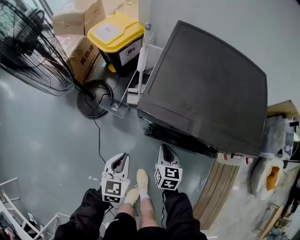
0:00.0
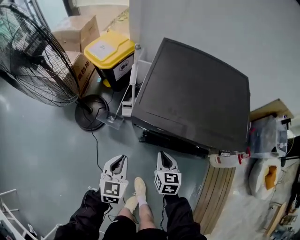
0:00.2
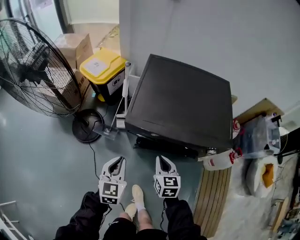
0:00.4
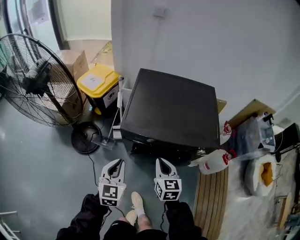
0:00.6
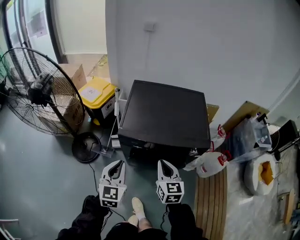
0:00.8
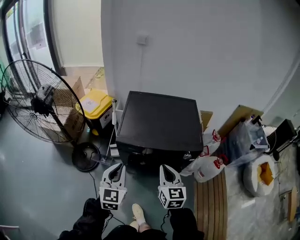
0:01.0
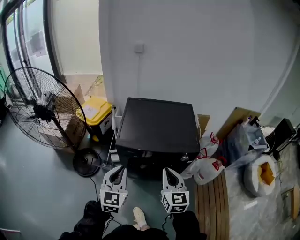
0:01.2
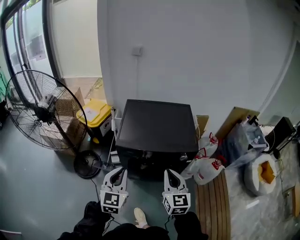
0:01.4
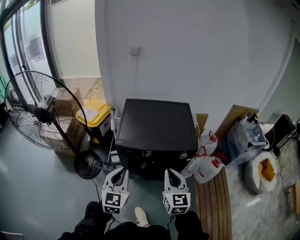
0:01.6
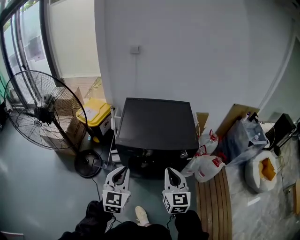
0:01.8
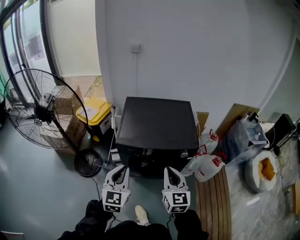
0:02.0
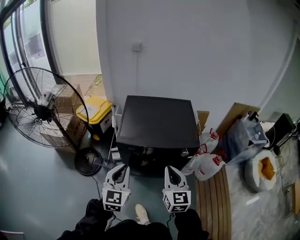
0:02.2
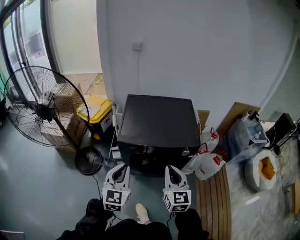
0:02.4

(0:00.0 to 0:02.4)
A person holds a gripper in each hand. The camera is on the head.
0:00.0 - 0:01.2: The right gripper moves upward and backward, approximately 50 cm, and turns by some 30 degrees; the left gripper is displaced upward by some 40 cm, and rotates some 30 degrees.
0:01.2 - 0:02.4: The grippers make only small movements.

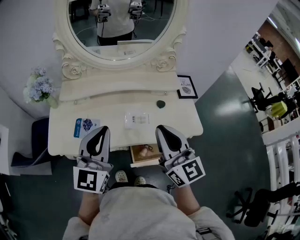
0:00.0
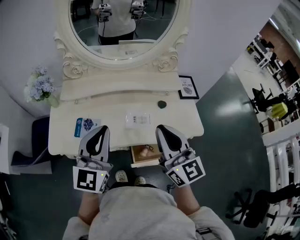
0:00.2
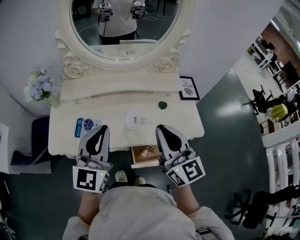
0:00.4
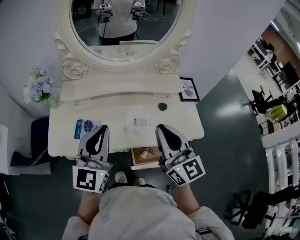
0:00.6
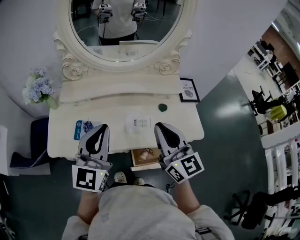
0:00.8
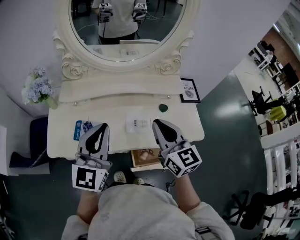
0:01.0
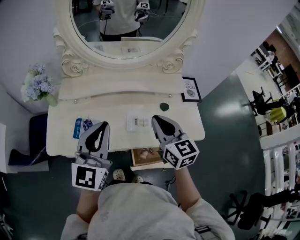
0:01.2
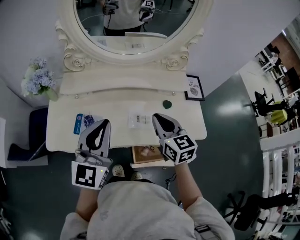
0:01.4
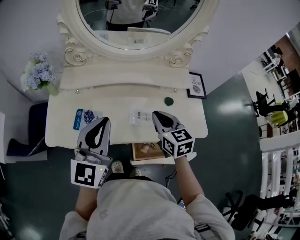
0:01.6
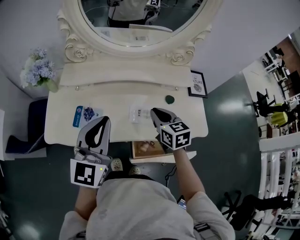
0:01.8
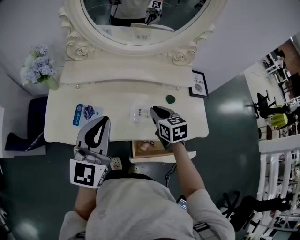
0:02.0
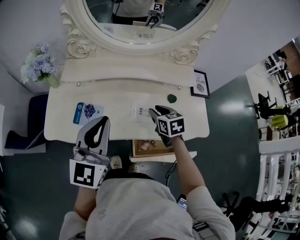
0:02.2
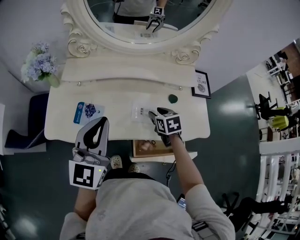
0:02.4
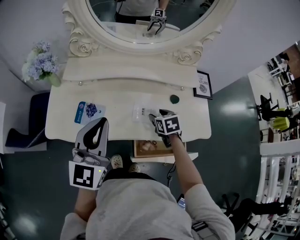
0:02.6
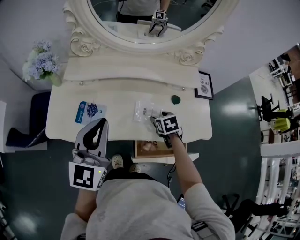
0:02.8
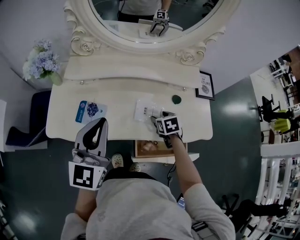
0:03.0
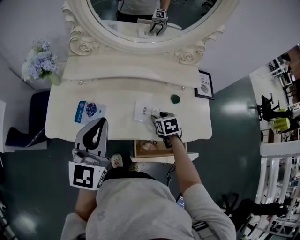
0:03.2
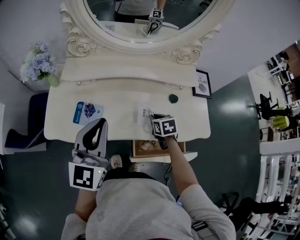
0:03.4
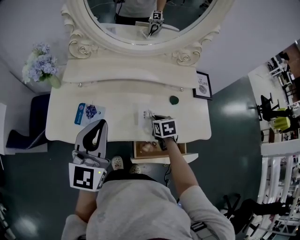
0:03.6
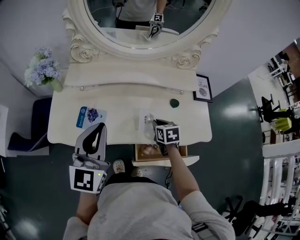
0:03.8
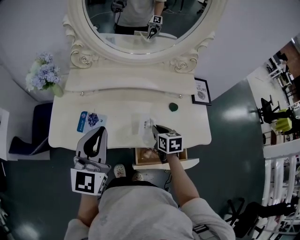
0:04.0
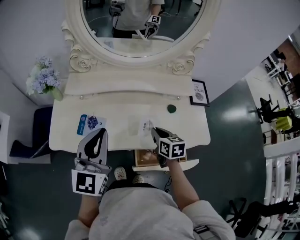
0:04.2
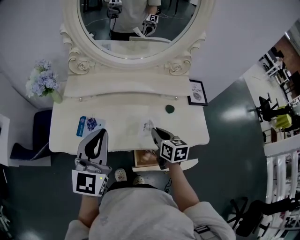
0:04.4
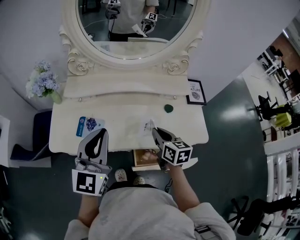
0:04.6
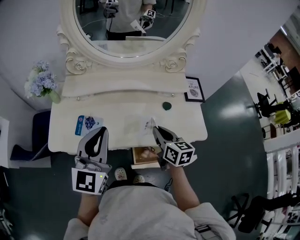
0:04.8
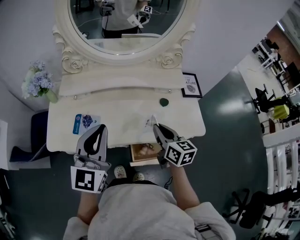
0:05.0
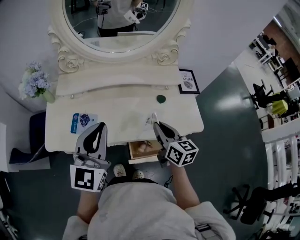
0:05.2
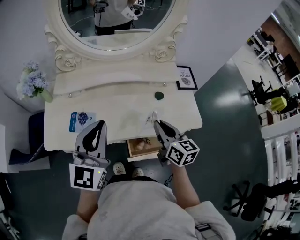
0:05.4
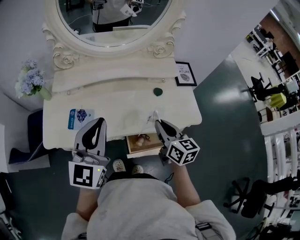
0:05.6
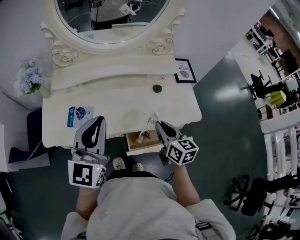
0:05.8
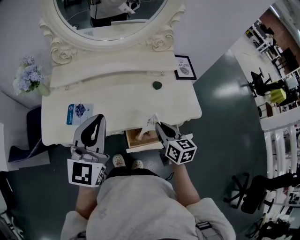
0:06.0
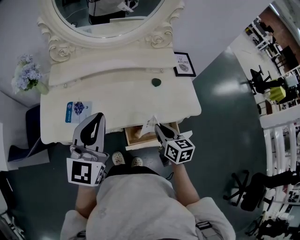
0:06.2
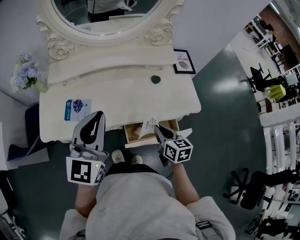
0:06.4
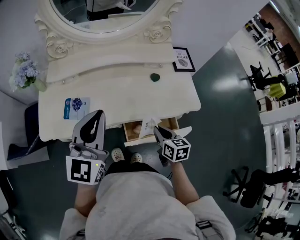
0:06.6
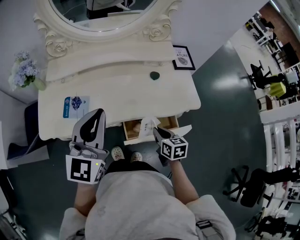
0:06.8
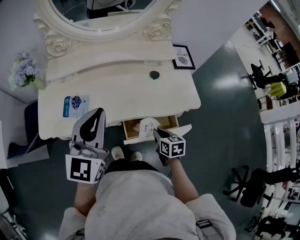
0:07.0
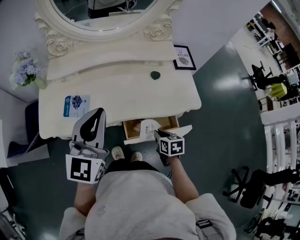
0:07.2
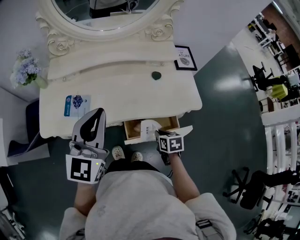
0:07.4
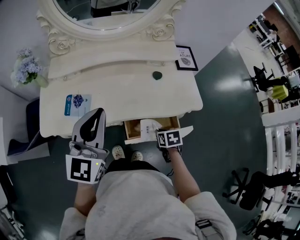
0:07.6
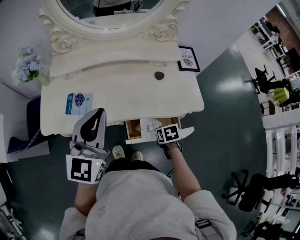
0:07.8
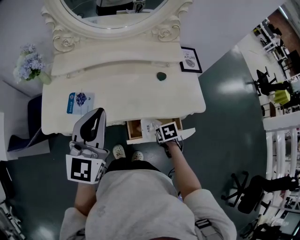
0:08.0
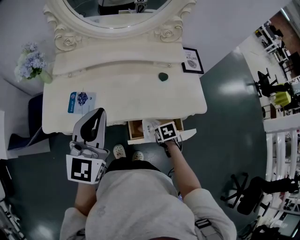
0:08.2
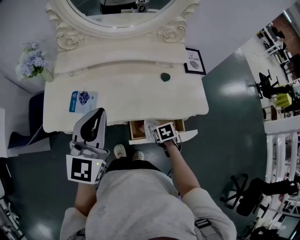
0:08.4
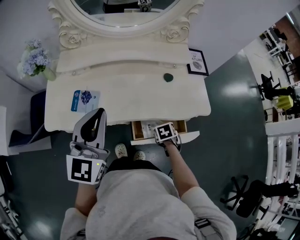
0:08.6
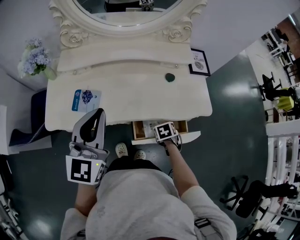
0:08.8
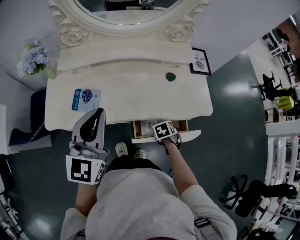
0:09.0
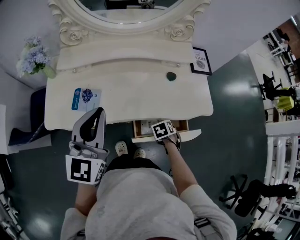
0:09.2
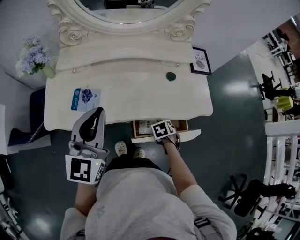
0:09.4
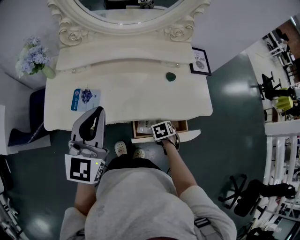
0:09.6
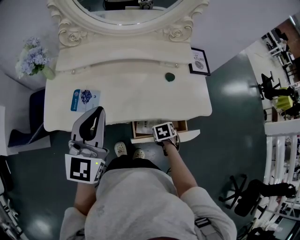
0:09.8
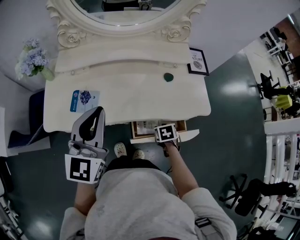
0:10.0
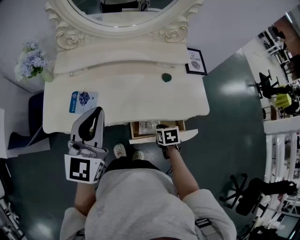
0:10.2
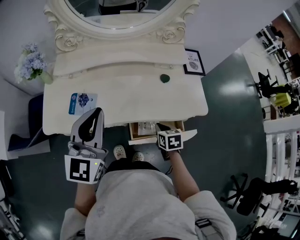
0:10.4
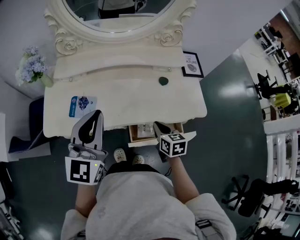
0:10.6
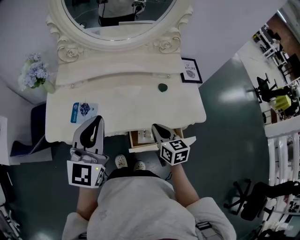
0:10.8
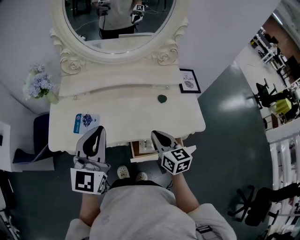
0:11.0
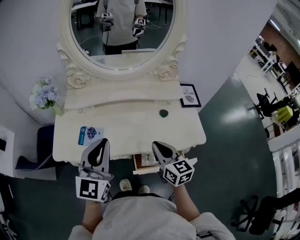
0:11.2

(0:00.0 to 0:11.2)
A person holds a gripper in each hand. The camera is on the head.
0:00.0 - 0:01.6: The right gripper moves downward and forward, approximately 20 cm, and angles its fingers downward, by roughly 30 degrees. The left gripper moves approximately 5 cm.
0:01.6 - 0:03.2: The right gripper moves downward, about 20 cm, angles its fingers downward, by some 30 degrees, and opens up.
0:03.2 - 0:04.8: The right gripper shifts about 15 cm upward and backward, tips its fingers upward by about 30 degrees, and closes.
0:04.8 - 0:06.4: The right gripper moves backward, downward and to the right, some 15 cm.
0:06.4 - 0:08.0: The right gripper is displaced downward by some 10 cm, and tips its fingers downward by about 40 degrees.
0:08.0 - 0:09.6: The right gripper shifts by about 5 cm, and opens its fingers.
0:09.6 - 0:11.2: The right gripper goes approximately 25 cm upward, tips its fingers upward by about 60 degrees, and closes its fingers.

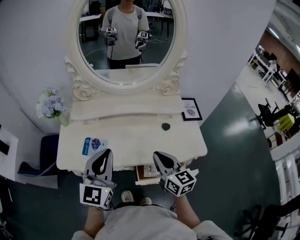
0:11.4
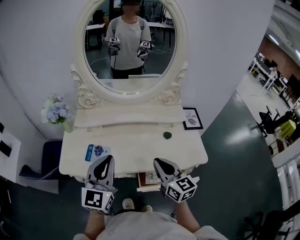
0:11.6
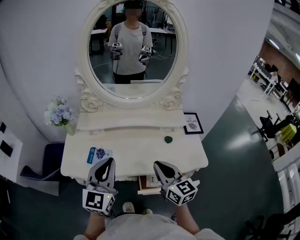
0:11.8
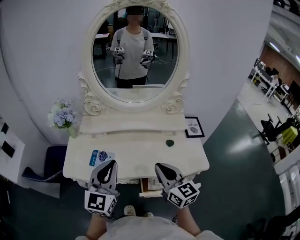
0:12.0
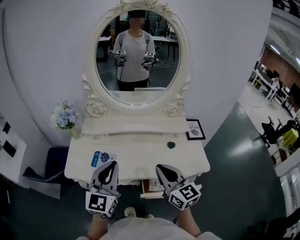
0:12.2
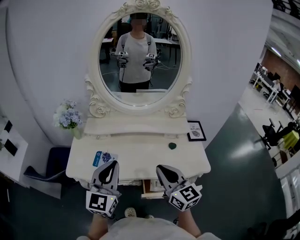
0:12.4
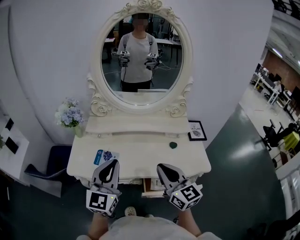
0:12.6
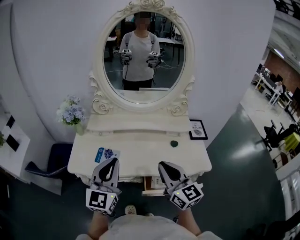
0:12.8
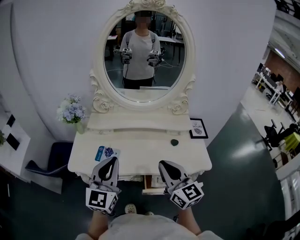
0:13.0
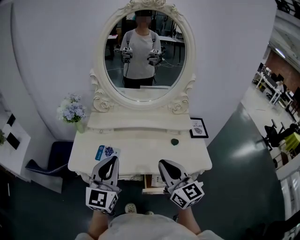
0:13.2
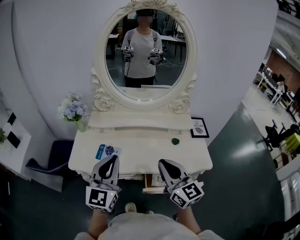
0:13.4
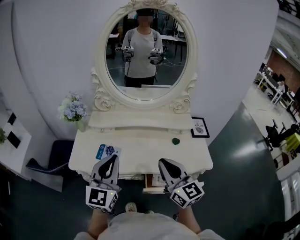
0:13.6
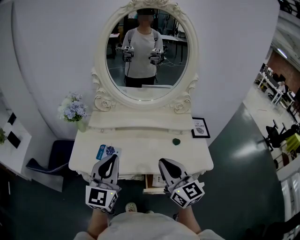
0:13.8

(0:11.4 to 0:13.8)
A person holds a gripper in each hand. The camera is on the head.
0:11.4 - 0:12.6: The right gripper moves upward, about 10 cm. Meanwhile the left gripper changes place by approximately 5 cm.
0:12.6 - 0:13.8: The grippers move only a little.

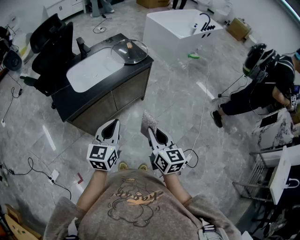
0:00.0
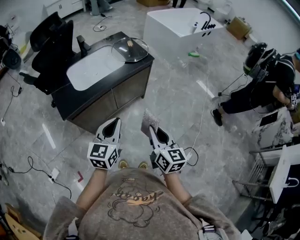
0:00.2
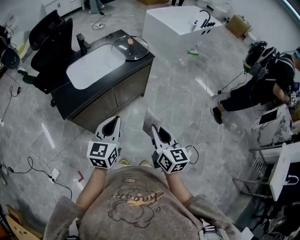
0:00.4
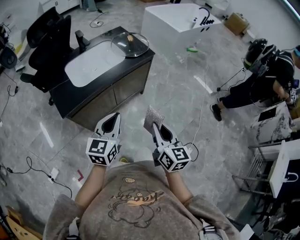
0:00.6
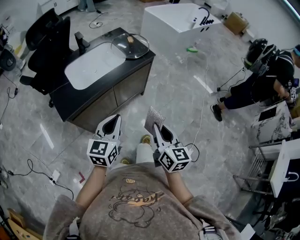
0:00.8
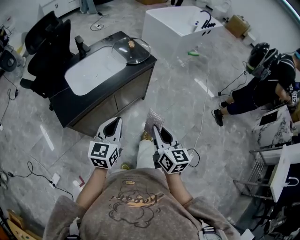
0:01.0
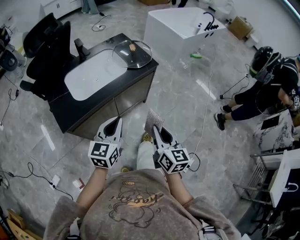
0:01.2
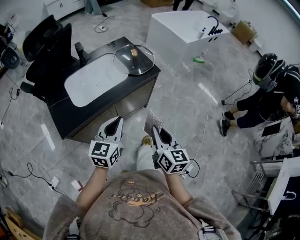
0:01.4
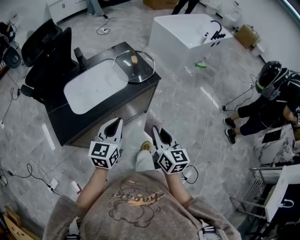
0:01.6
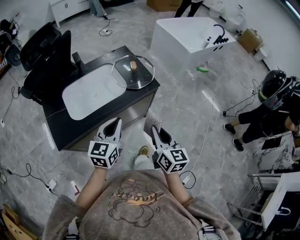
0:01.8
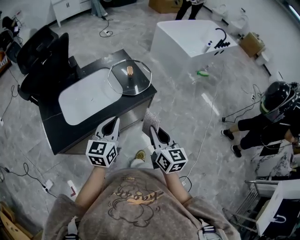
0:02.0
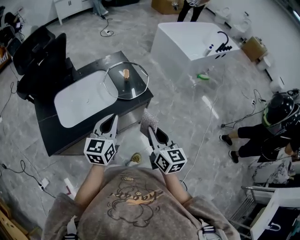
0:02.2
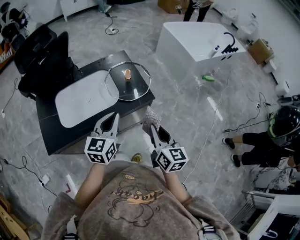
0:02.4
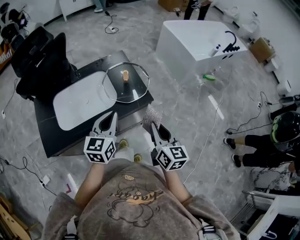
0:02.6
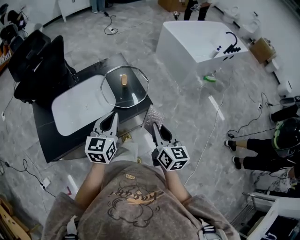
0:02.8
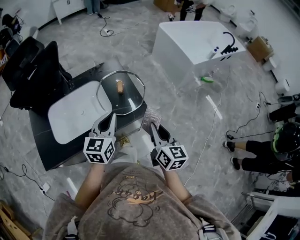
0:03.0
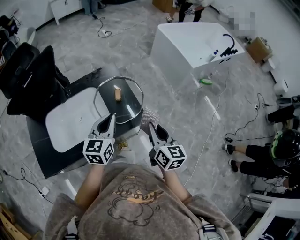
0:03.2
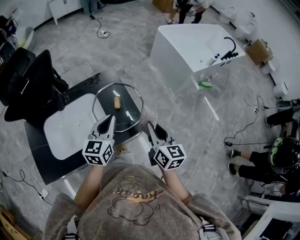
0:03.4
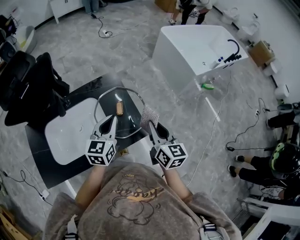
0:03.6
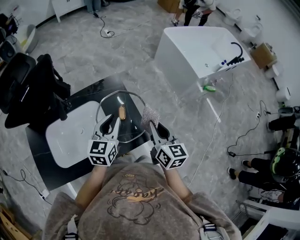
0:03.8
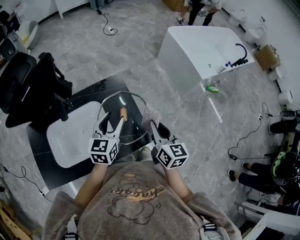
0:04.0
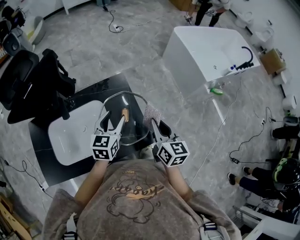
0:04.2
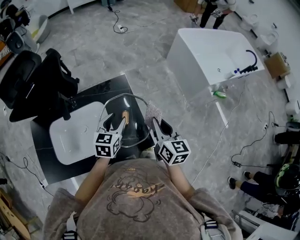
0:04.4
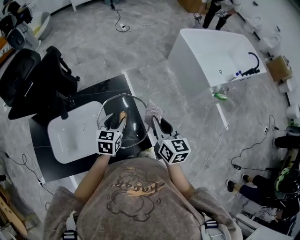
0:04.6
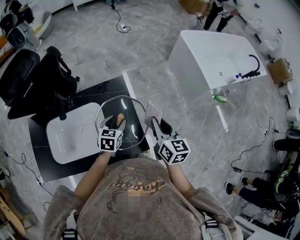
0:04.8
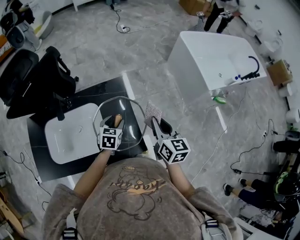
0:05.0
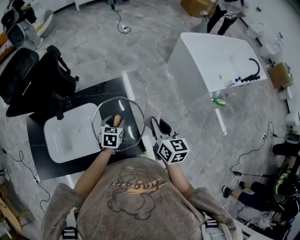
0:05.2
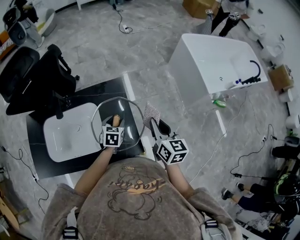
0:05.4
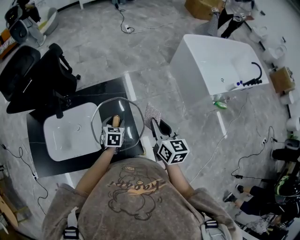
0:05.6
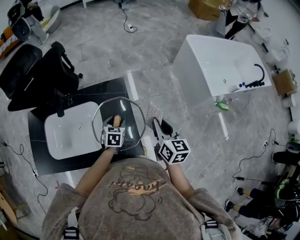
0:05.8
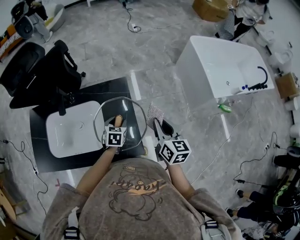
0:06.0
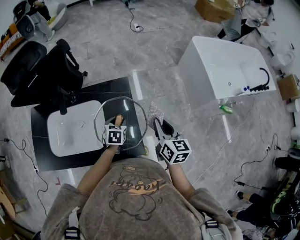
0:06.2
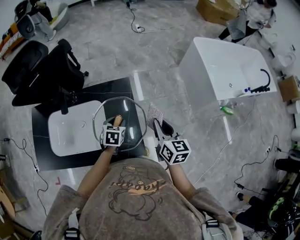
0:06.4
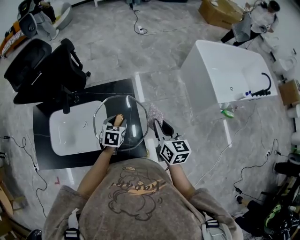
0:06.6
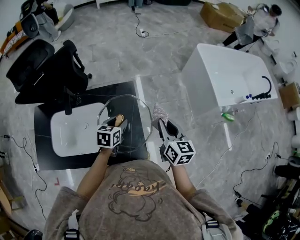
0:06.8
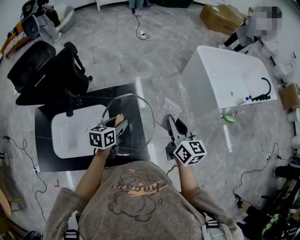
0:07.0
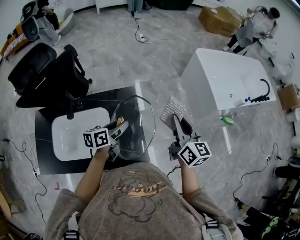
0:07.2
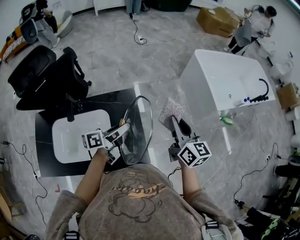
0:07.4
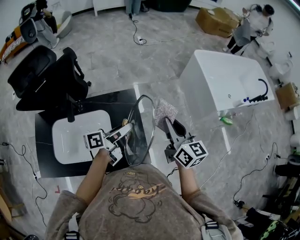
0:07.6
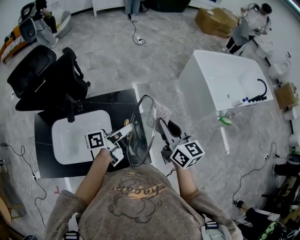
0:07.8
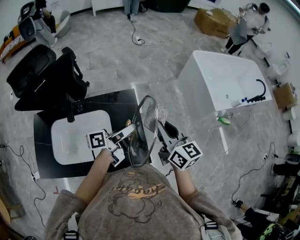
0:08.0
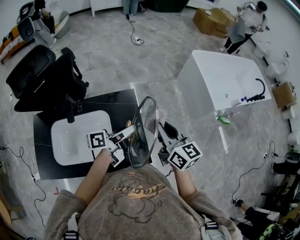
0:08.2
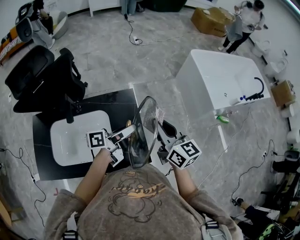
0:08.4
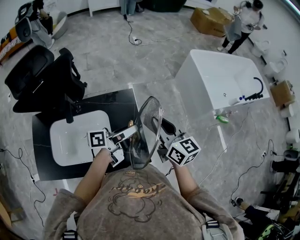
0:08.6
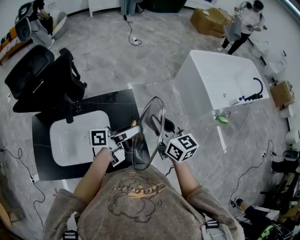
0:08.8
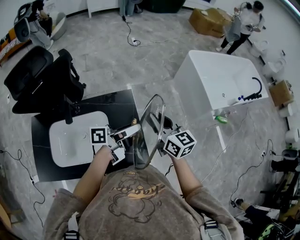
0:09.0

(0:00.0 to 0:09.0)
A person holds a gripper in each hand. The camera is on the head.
0:00.0 - 0:01.6: The grippers both shift forward by some 20 cm.
0:01.6 - 0:03.0: The right gripper is displaced forward and to the right by some 30 cm. Meanwhile the left gripper shifts approximately 25 cm forward.
0:03.0 - 0:04.4: The grippers both shift forward by roughly 20 cm. The left gripper opens its fingers.
0:04.4 - 0:06.0: The right gripper shifts approximately 5 cm to the right. The left gripper shifts roughly 15 cm downward, and changes its angle by roughly 20 degrees.
0:06.0 - 0:07.6: The left gripper is displaced upward by about 20 cm, and points its fingers approximately 50 degrees further upward. Meanwhile the right gripper travels upward by about 10 cm.
0:07.6 - 0:09.0: The left gripper ends up roughly 5 cm from where it was; the right gripper shifts approximately 5 cm to the left.
